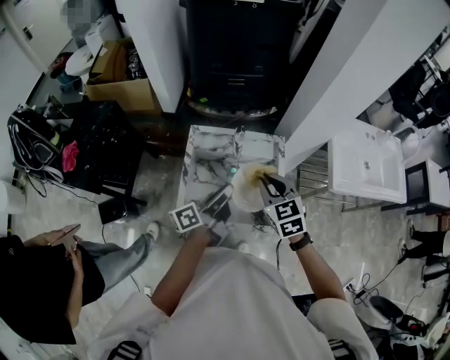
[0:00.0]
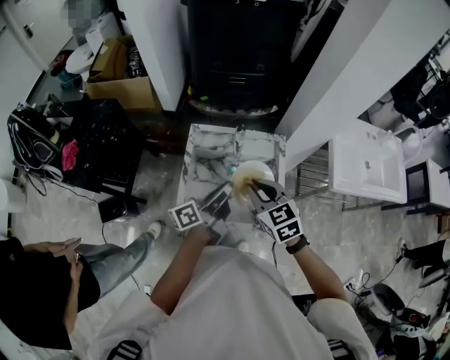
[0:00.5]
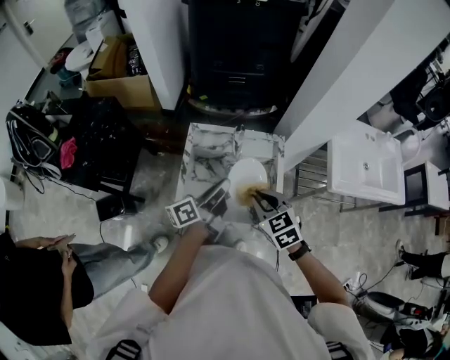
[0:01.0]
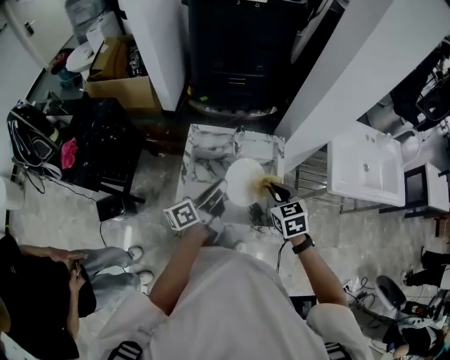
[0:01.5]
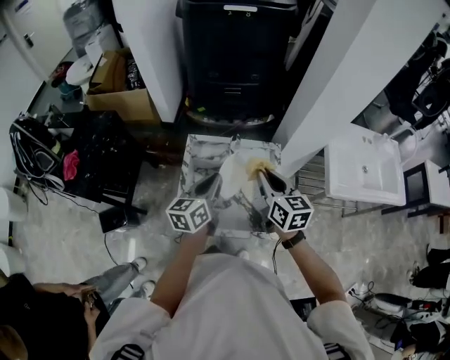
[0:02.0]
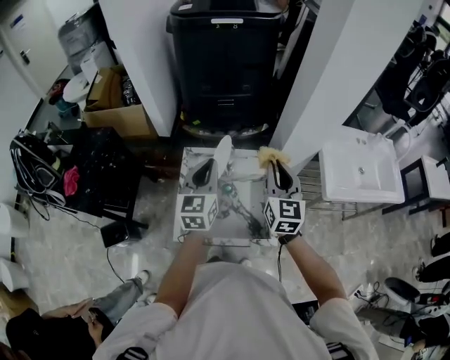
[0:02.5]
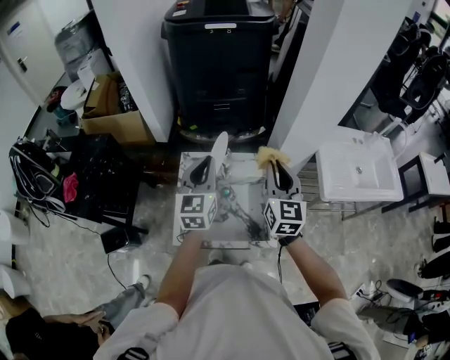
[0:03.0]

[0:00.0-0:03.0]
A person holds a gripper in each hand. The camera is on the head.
0:00.0 to 0:01.5: The right gripper travels downward by about 5 cm.
0:01.5 to 0:03.0: The two grippers go about 15 cm upward and forward. The left gripper twists about 70 degrees clockwise, seen from behind; the right gripper tips its fingers upward by about 40 degrees.

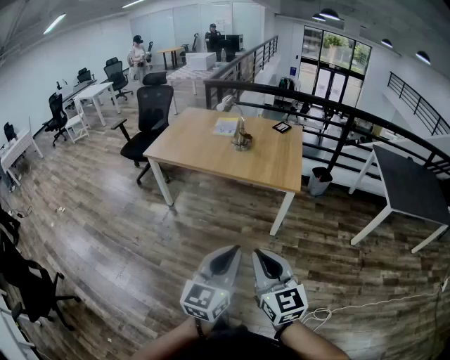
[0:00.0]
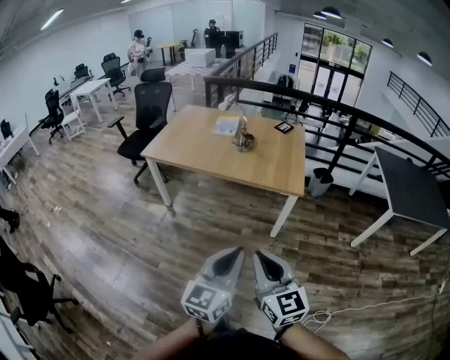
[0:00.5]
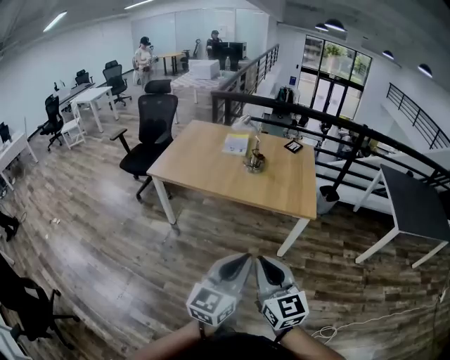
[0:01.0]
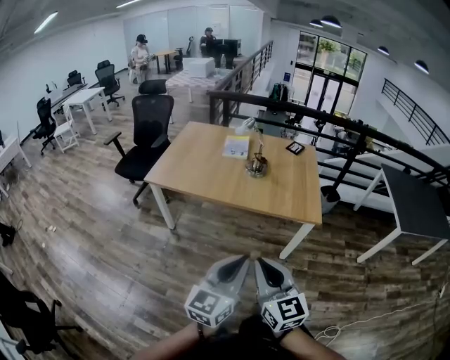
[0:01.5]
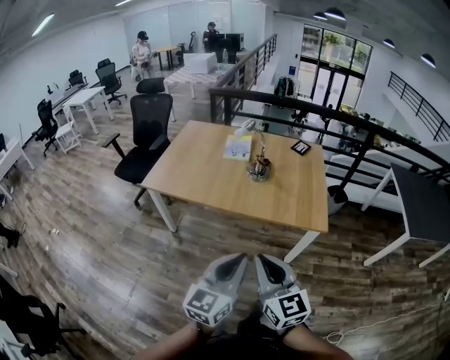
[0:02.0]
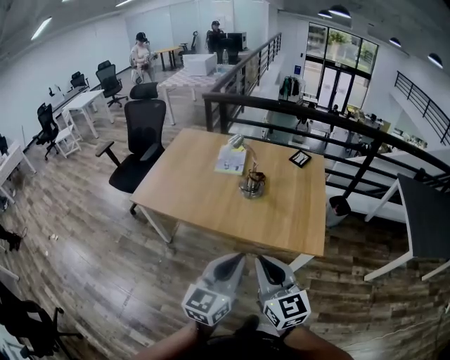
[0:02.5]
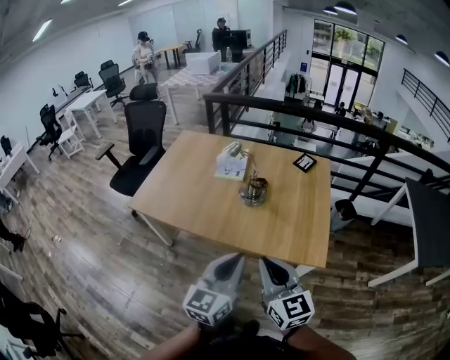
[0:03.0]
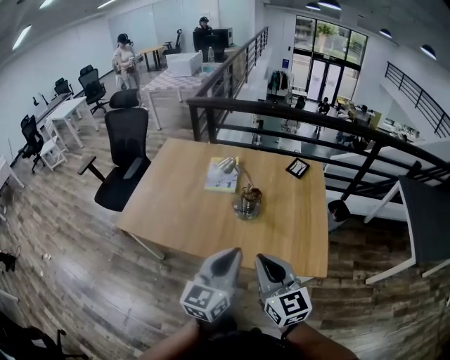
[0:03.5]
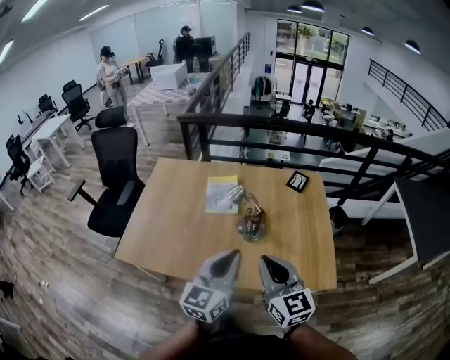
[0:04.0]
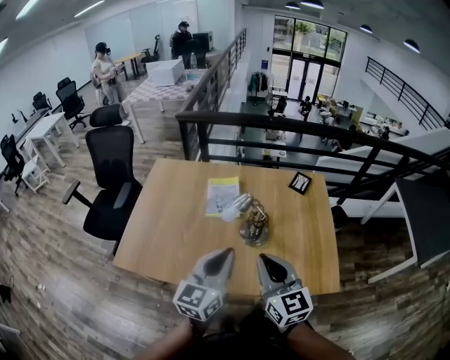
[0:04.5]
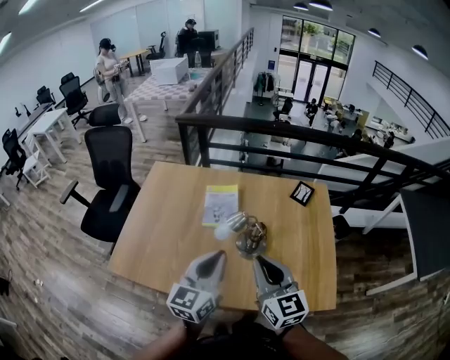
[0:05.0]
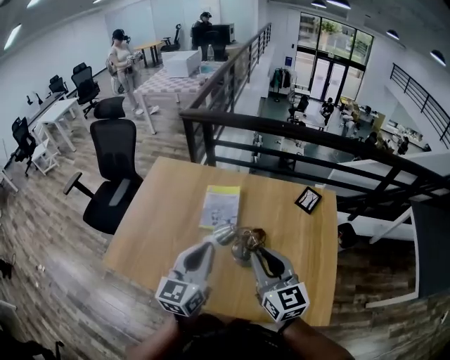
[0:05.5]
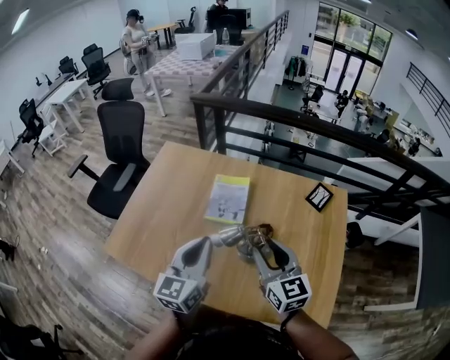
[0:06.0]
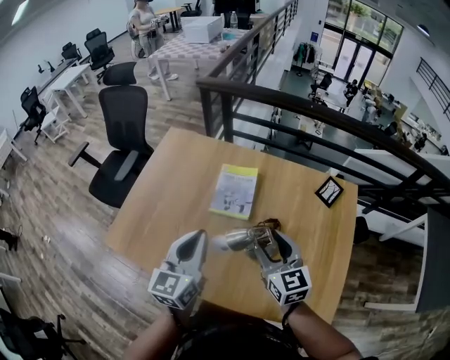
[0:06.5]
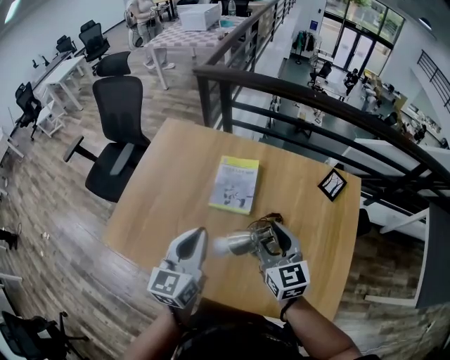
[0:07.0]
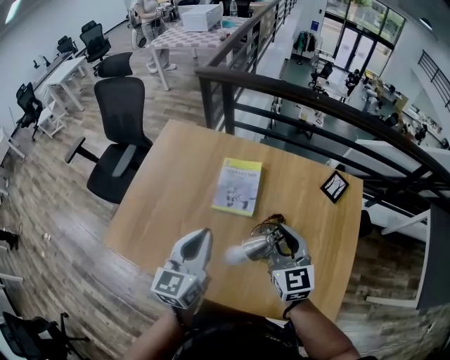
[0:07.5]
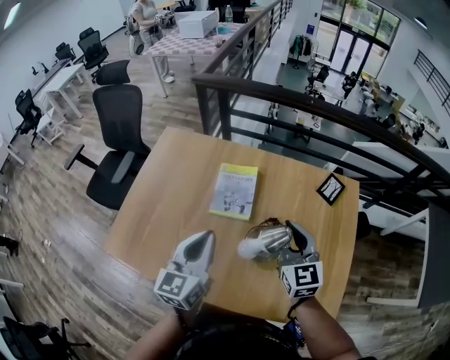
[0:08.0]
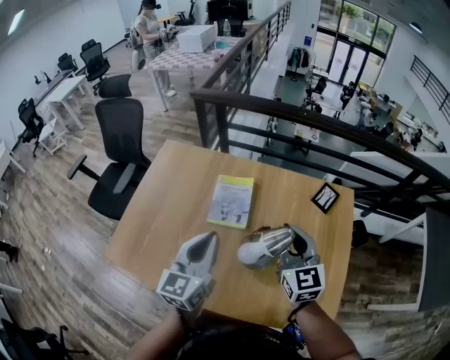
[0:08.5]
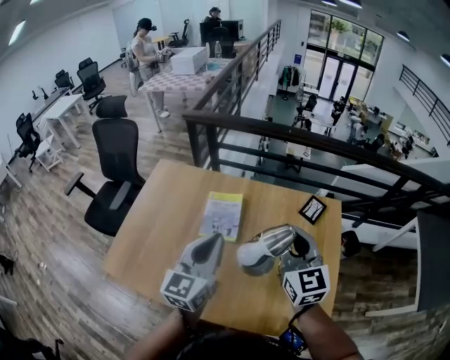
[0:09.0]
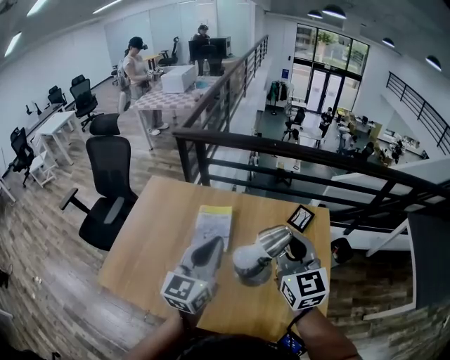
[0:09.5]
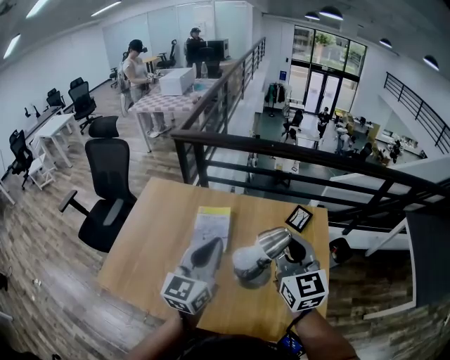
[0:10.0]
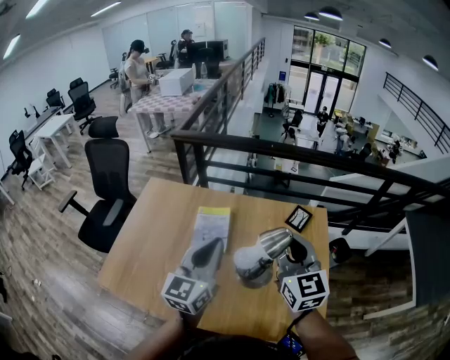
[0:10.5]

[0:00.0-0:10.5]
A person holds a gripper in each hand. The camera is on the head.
0:00.0 to 0:02.0: The two grippers go some 30 cm forward and to the left.
0:02.0 to 0:04.0: Both grippers travel together forward, some 40 cm.
0:04.0 to 0:06.5: The right gripper is displaced forward and downward by roughly 30 cm, and opens; the left gripper goes approximately 20 cm forward, and changes its angle by roughly 20 degrees.
0:06.5 to 0:08.5: The right gripper goes some 10 cm upward and to the right, and closes its fingers.
0:08.5 to 0:10.5: Both grippers travel together upward and to the right, some 10 cm.

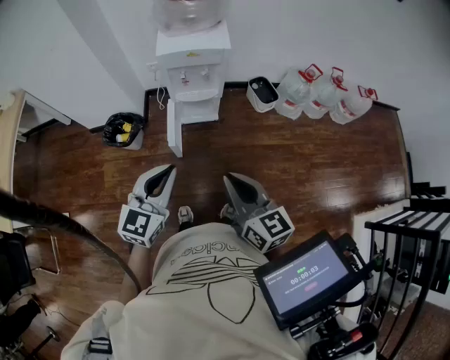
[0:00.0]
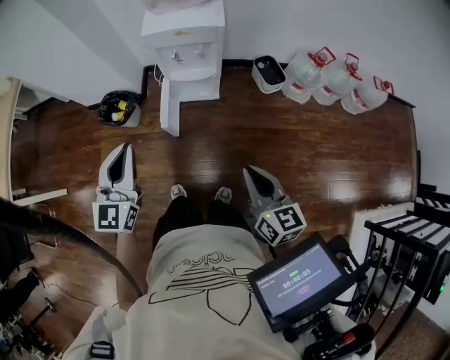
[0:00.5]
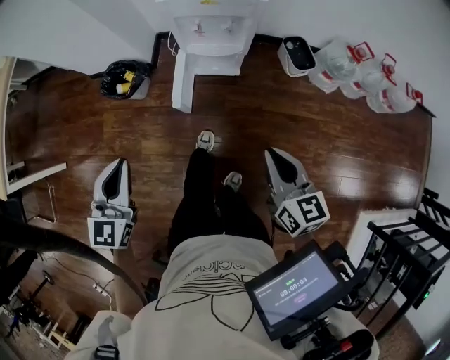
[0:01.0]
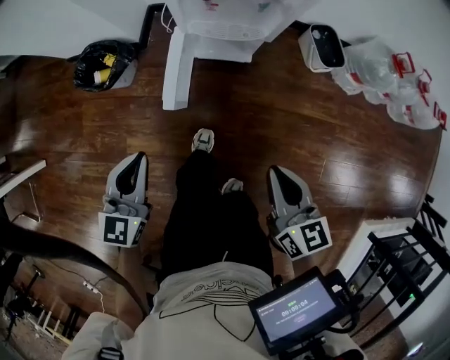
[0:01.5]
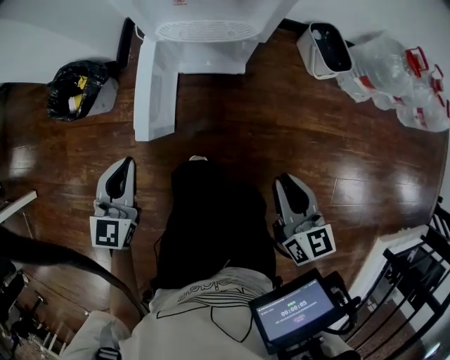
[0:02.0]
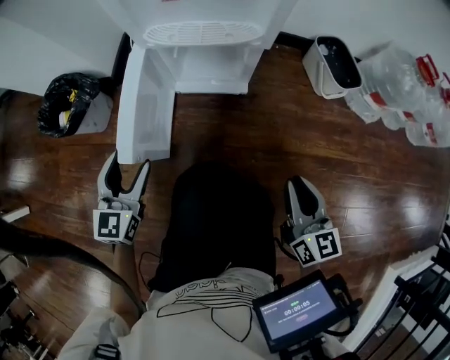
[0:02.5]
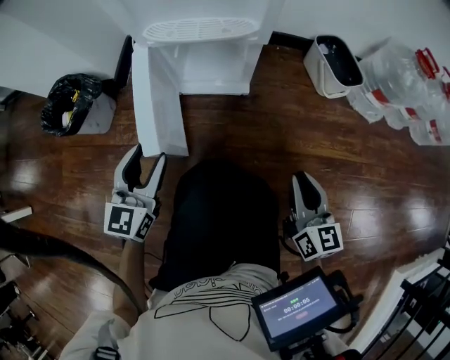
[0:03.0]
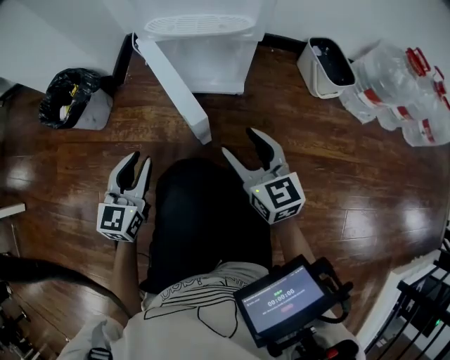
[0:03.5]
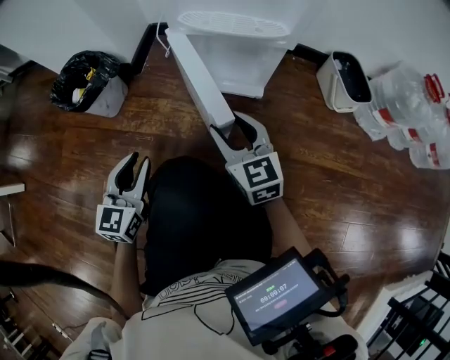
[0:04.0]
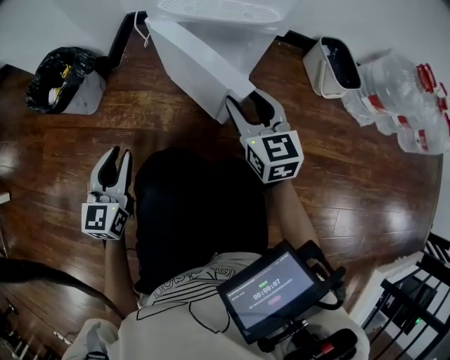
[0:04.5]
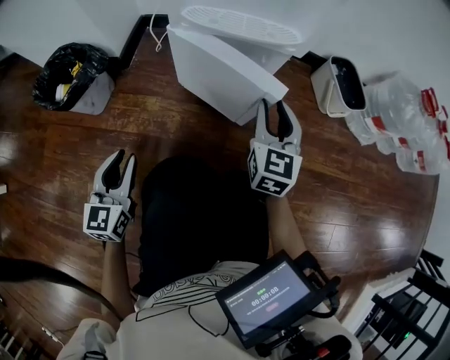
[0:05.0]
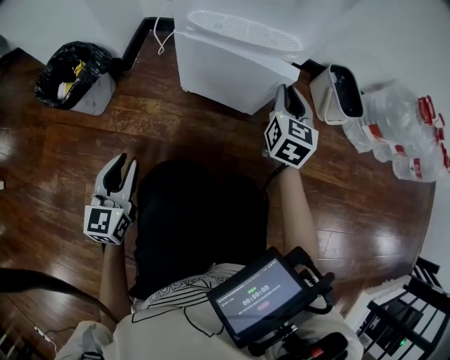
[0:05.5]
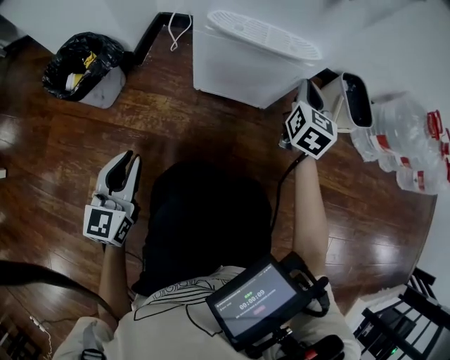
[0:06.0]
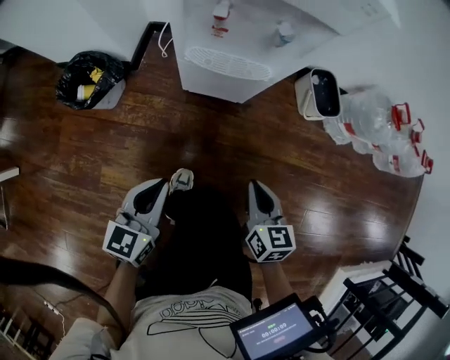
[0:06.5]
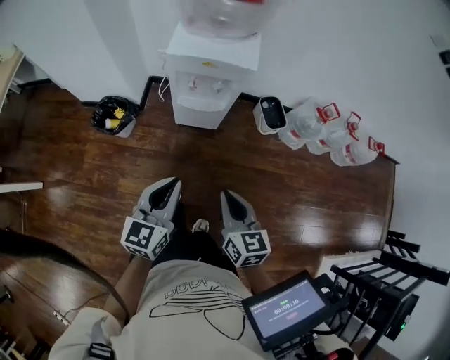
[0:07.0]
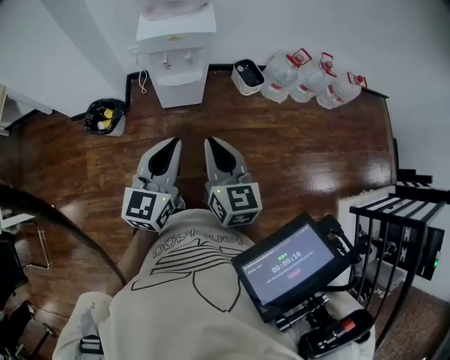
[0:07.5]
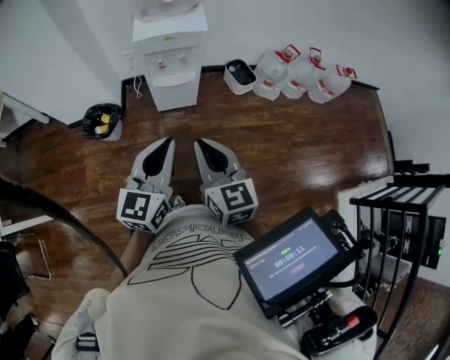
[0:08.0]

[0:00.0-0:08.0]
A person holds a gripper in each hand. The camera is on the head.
0:00.0 to 0:02.0: Both grippers move downward and forward, roughly 50 cm. The left gripper changes its angle by about 20 degrees.
0:02.0 to 0:04.0: The right gripper is displaced to the left, forward and downward by some 25 cm, swivels about 30 degrees, and opens up; the left gripper travels downward by roughly 15 cm, and opens.
0:04.0 to 0:06.0: The right gripper goes approximately 25 cm forward and to the right, rotates roughly 40 degrees, and closes.
0:06.0 to 0:08.0: The right gripper moves upward and backward, approximately 80 cm; the left gripper is displaced upward by some 60 cm, and rotates roughly 30 degrees.

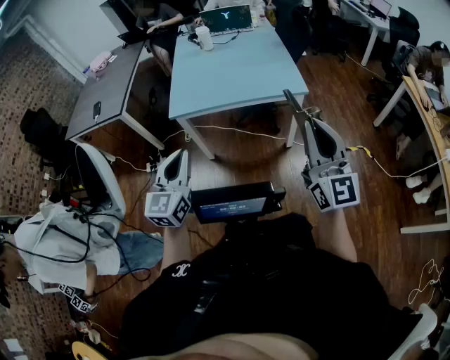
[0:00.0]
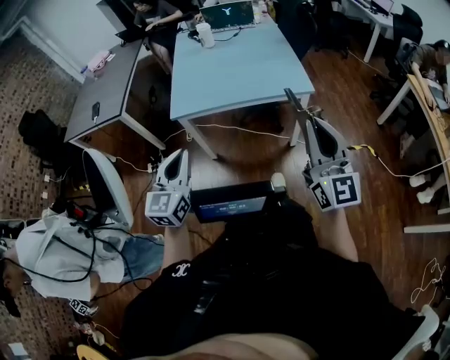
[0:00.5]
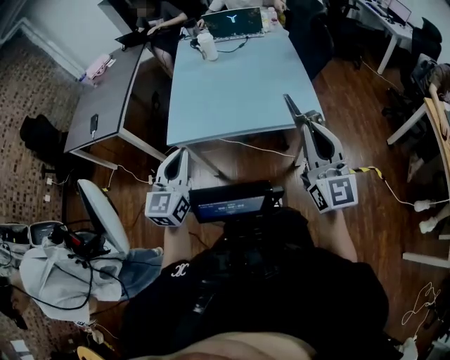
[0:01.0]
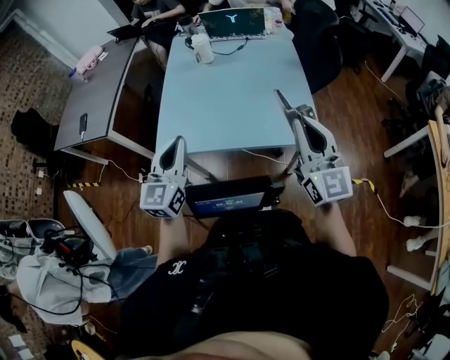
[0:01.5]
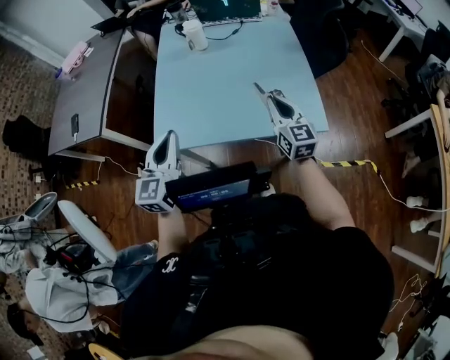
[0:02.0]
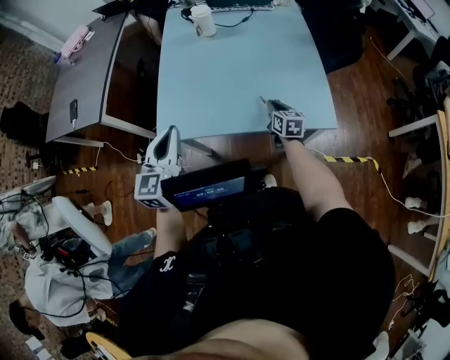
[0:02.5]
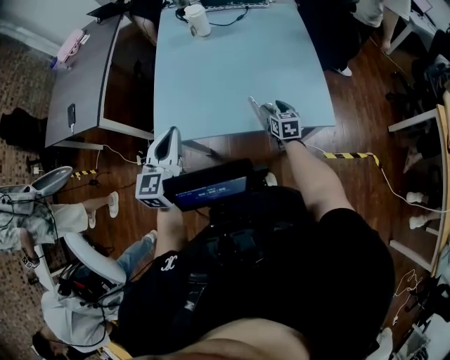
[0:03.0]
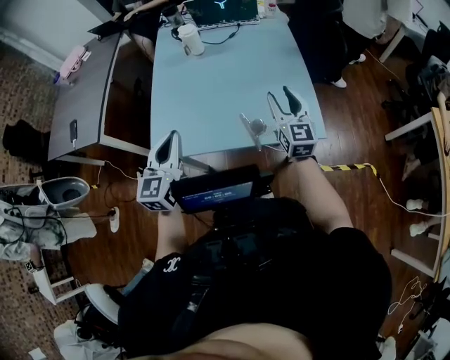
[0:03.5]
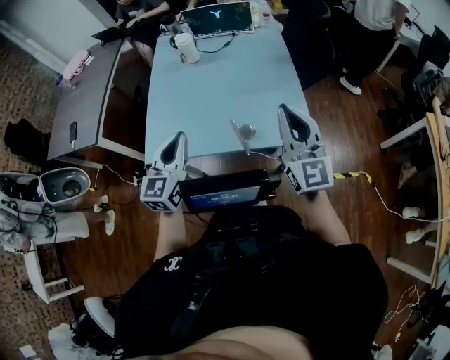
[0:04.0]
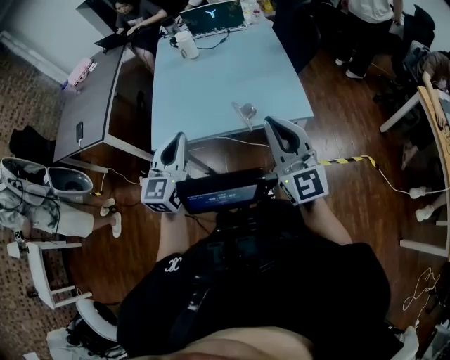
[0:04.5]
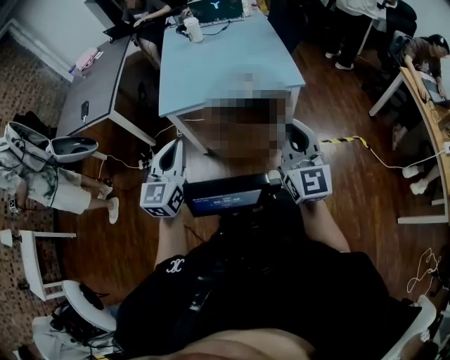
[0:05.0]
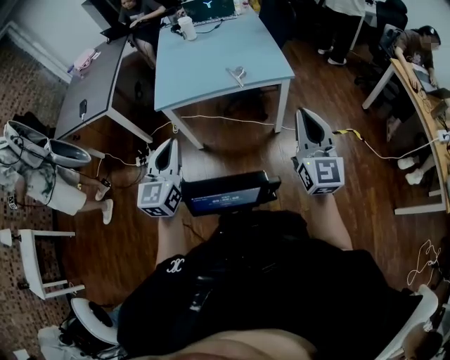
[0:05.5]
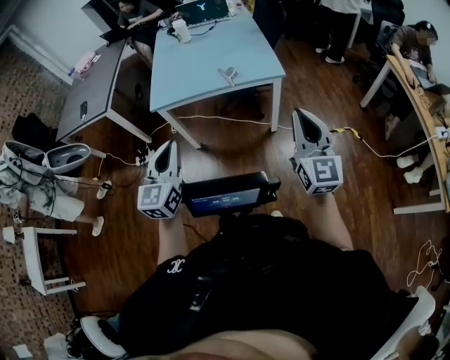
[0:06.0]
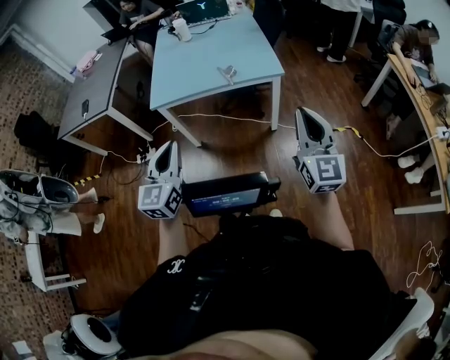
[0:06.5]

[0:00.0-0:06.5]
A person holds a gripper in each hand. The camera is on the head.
0:00.0 to 0:02.0: The right gripper heads forward and downward, covering about 50 cm, and rotates some 30 degrees; the left gripper goes approximately 35 cm forward.
0:02.0 to 0:04.5: The right gripper goes approximately 25 cm backward and upward, turns by approximately 30 degrees, and opens and closes again. The left gripper shifts approximately 10 cm backward and to the right.
0:04.5 to 0:06.5: The right gripper heads backward and to the right, covering roughly 30 cm. The left gripper is displaced backward by some 30 cm.
